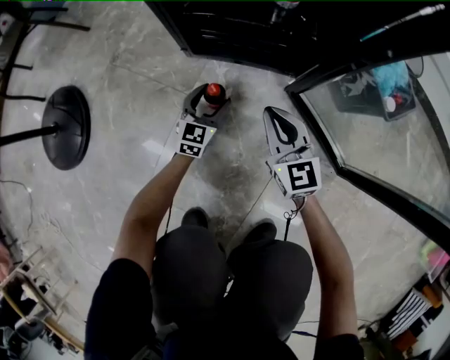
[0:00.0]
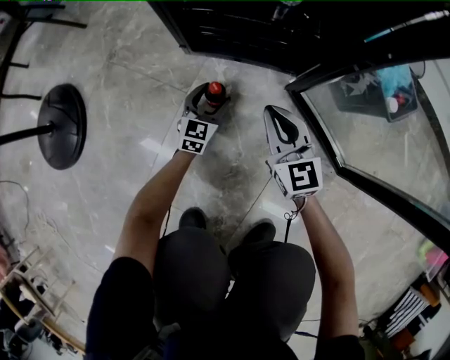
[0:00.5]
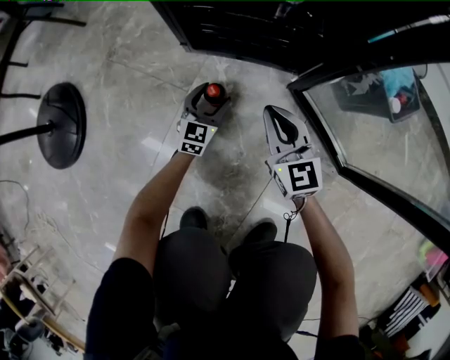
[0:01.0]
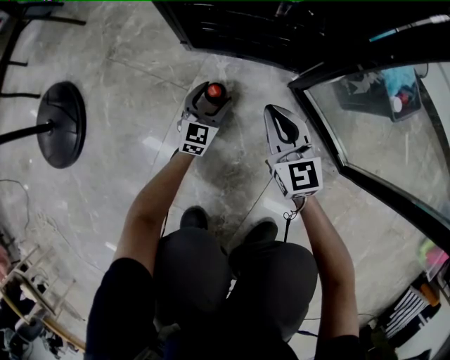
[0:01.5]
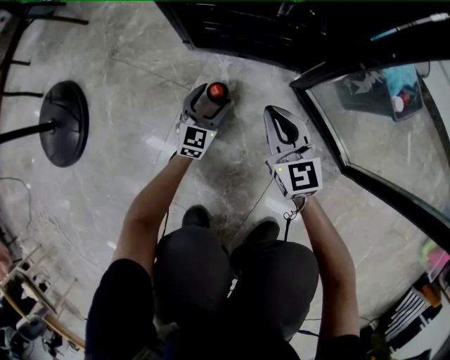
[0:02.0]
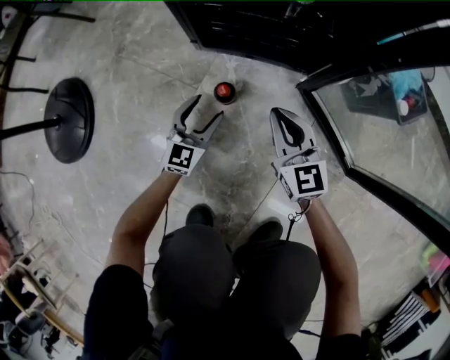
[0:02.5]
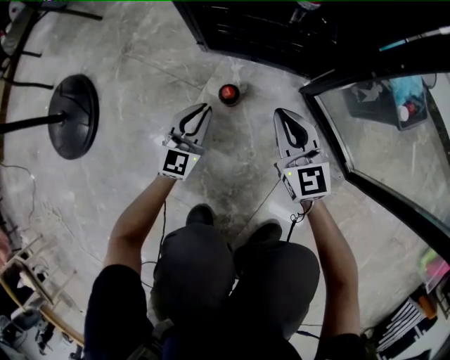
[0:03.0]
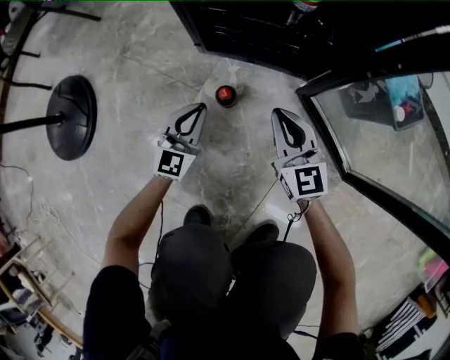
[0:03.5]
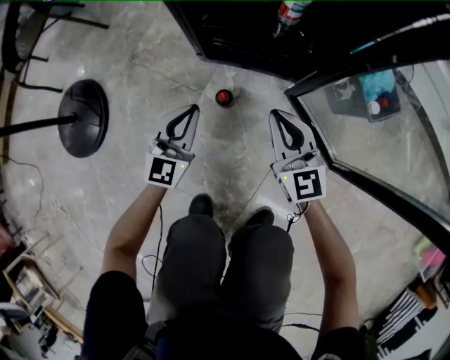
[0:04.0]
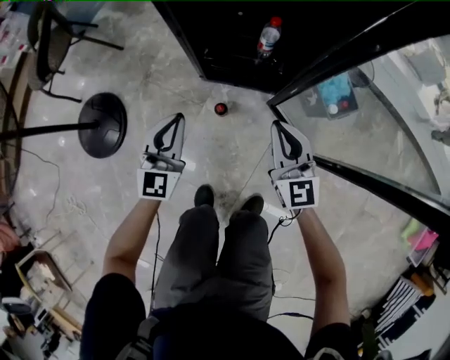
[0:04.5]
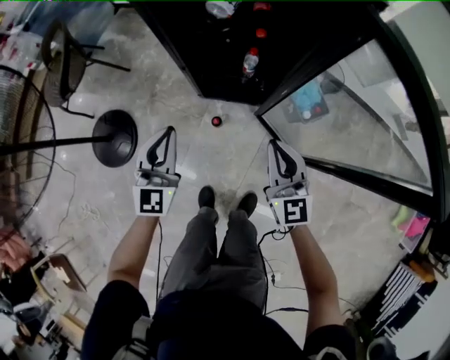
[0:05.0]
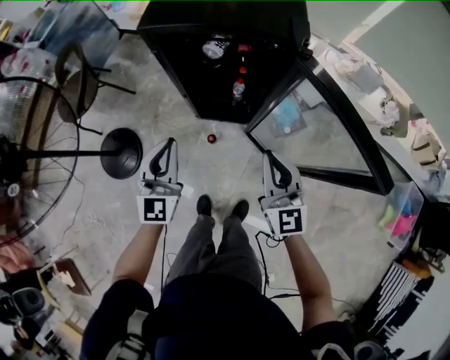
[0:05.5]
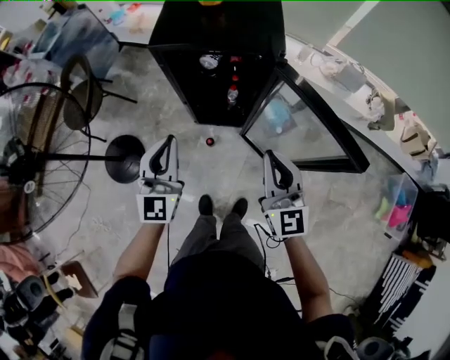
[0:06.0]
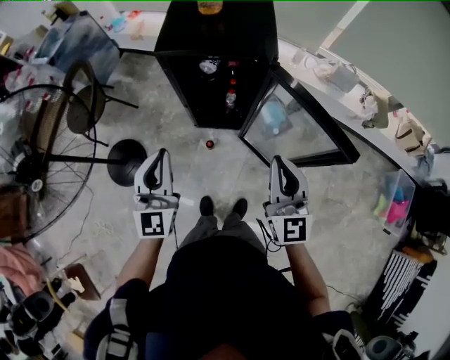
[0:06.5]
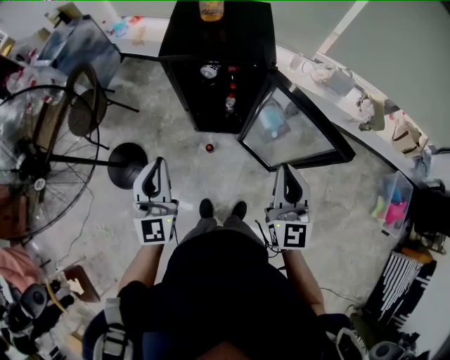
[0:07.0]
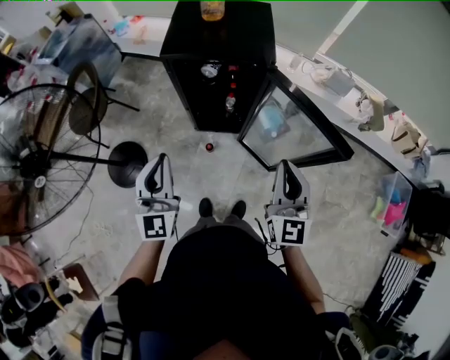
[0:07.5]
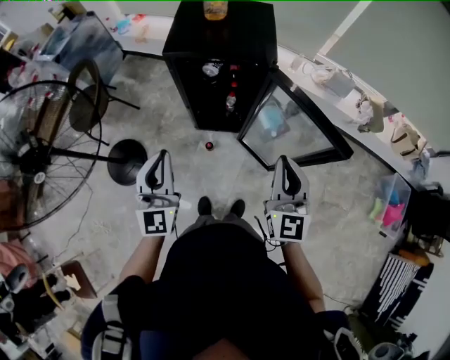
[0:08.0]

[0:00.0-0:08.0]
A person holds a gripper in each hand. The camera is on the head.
0:00.0 to 0:02.0: The grippers stay close to where they were, moving slightly.
0:02.0 to 0:04.0: The left gripper goes about 25 cm upward, and closes its fingers, while the right gripper shifts approximately 15 cm upward.
0:04.0 to 0:06.0: Both grippers move upward, some 80 cm.
0:06.0 to 0:08.0: The right gripper heads upward and backward, covering approximately 10 cm. Meanwhile the left gripper travels backward and upward by about 10 cm.

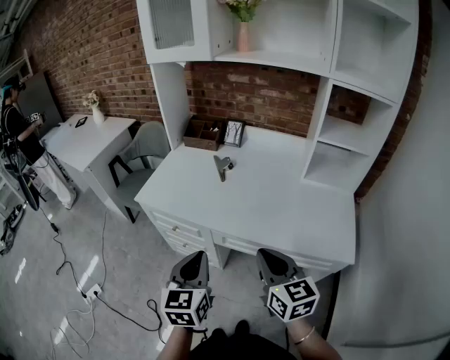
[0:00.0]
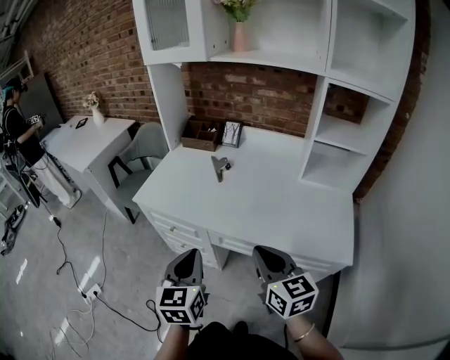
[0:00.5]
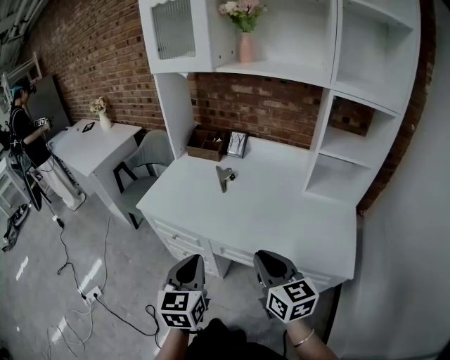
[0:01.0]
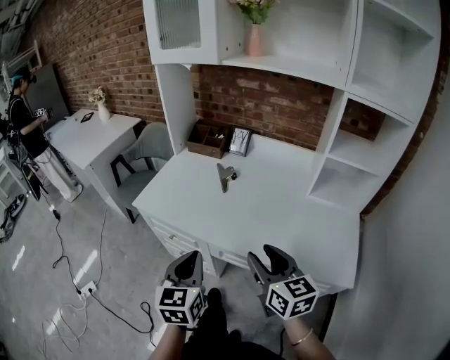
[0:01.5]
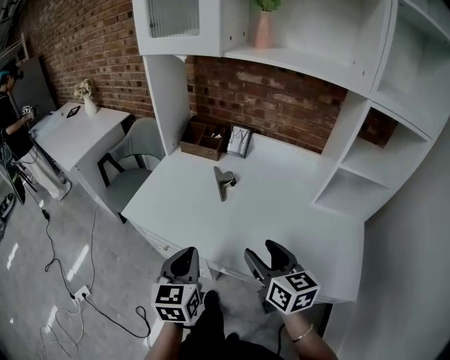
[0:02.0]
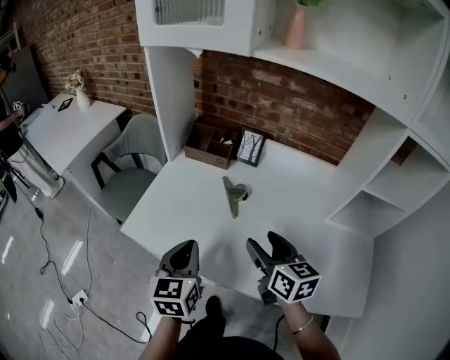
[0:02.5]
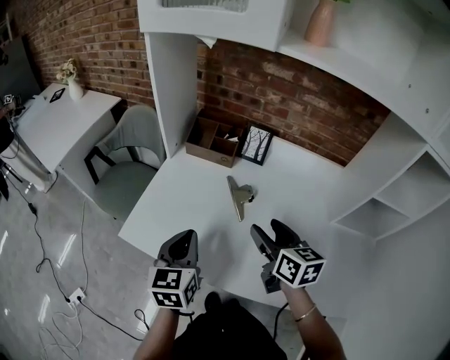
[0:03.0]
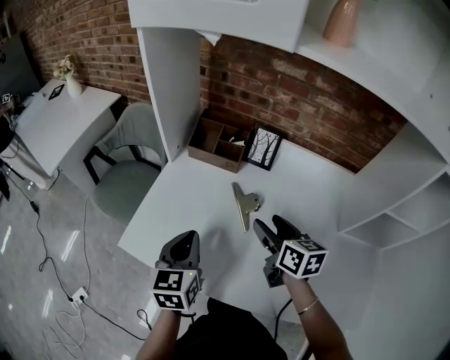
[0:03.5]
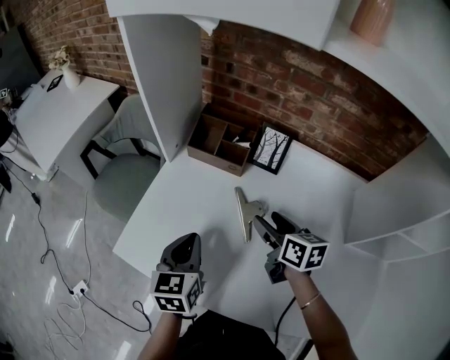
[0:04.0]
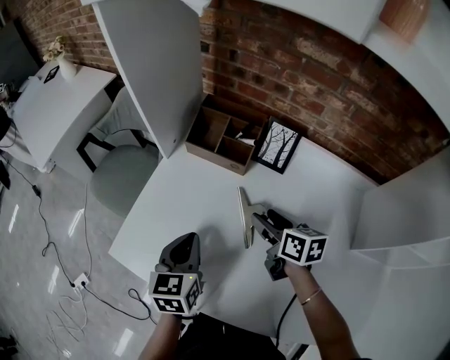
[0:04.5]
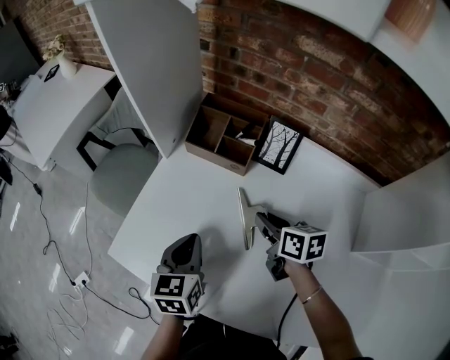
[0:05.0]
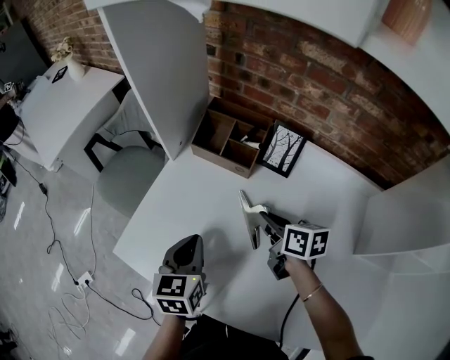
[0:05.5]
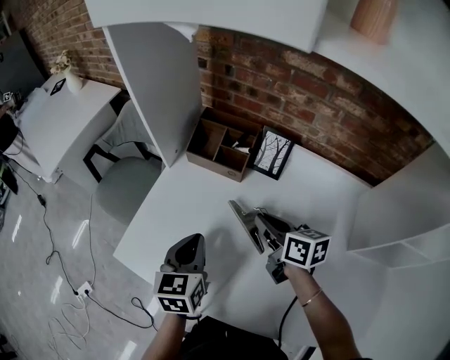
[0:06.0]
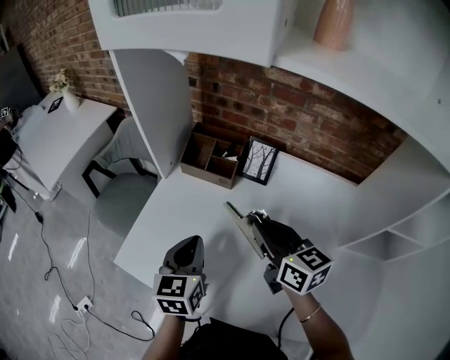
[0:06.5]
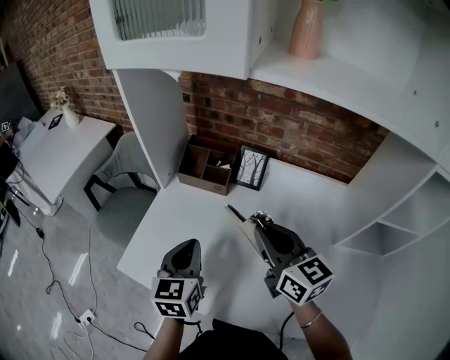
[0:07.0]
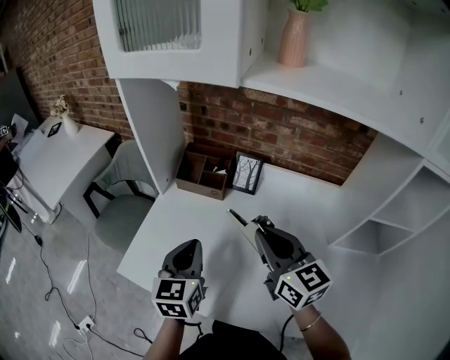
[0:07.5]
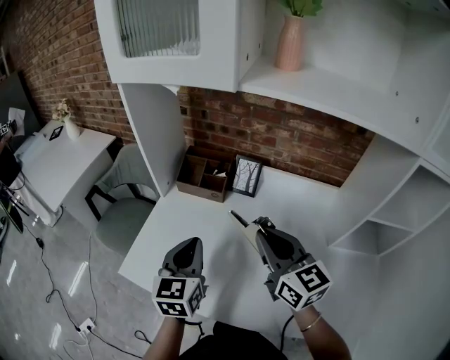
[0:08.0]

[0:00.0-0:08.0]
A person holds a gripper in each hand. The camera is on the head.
0:00.0 to 0:02.0: The grippers both shift forward by some 15 cm. The right gripper opens.
0:02.0 to 0:04.0: Both grippers travel together forward, approximately 30 cm. The right gripper rotates roughly 20 degrees.
0:04.0 to 0:06.0: The right gripper closes up.
0:06.0 to 0:08.0: The left gripper heads upward, covering some 10 cm; the right gripper travels upward and backward by some 20 cm, and rotates some 40 degrees.

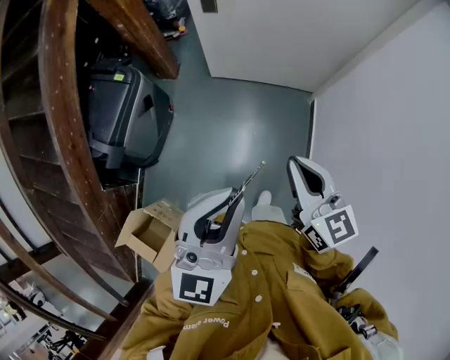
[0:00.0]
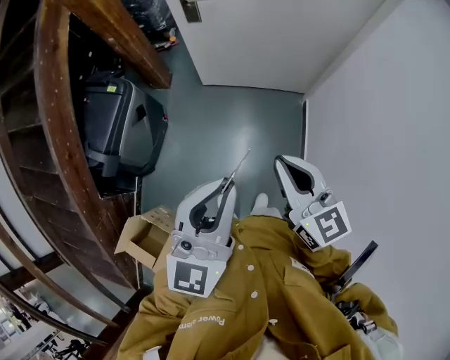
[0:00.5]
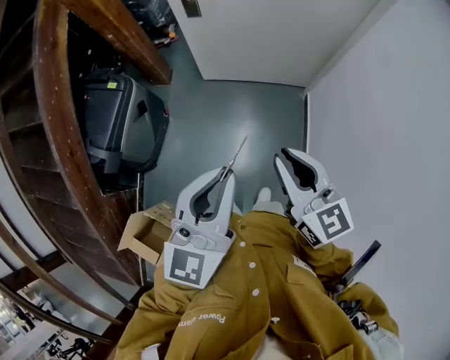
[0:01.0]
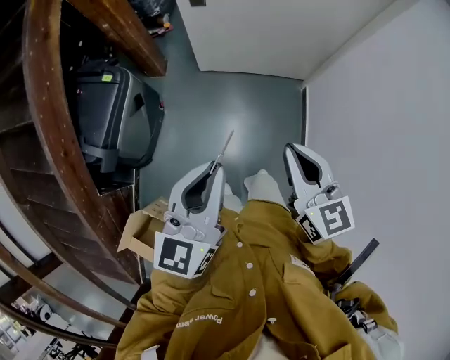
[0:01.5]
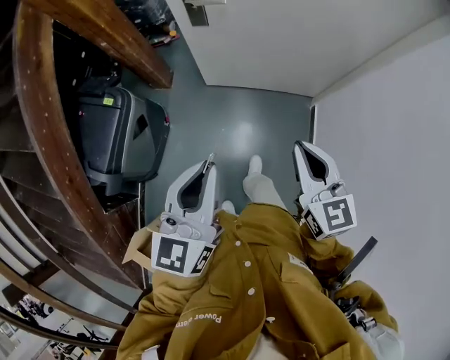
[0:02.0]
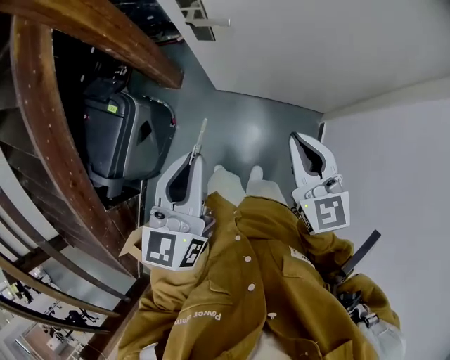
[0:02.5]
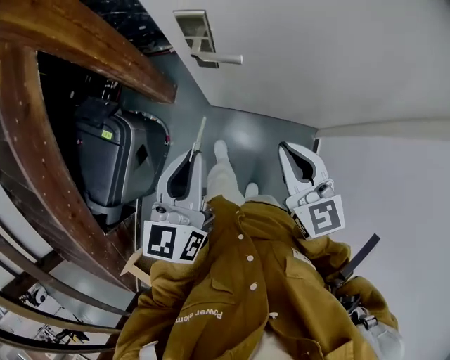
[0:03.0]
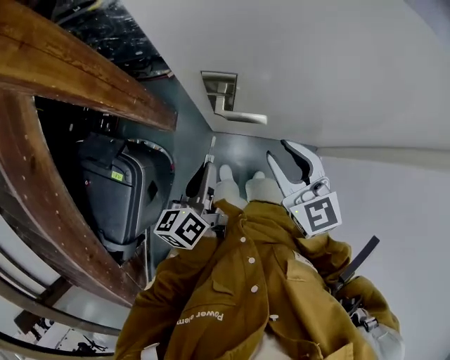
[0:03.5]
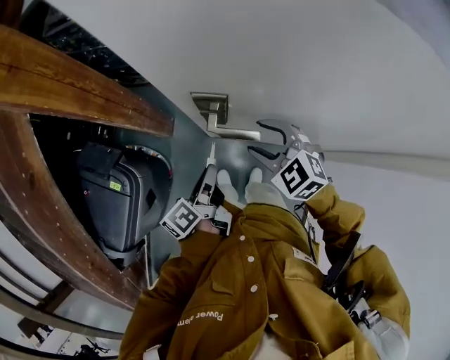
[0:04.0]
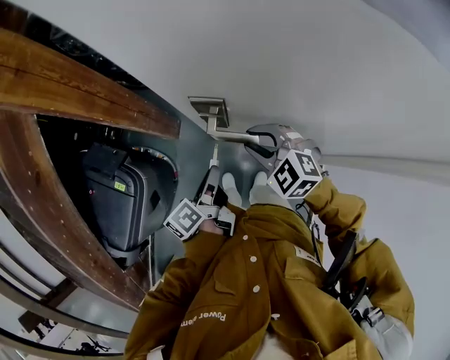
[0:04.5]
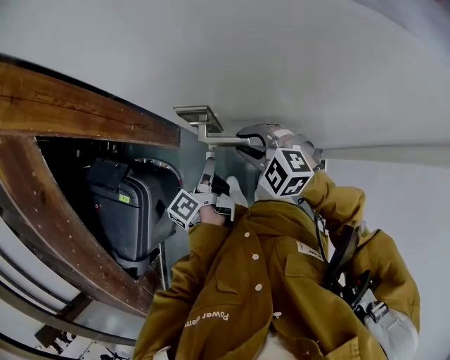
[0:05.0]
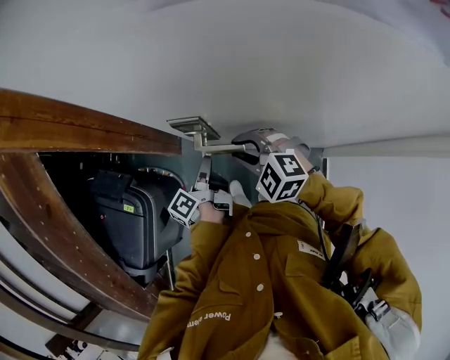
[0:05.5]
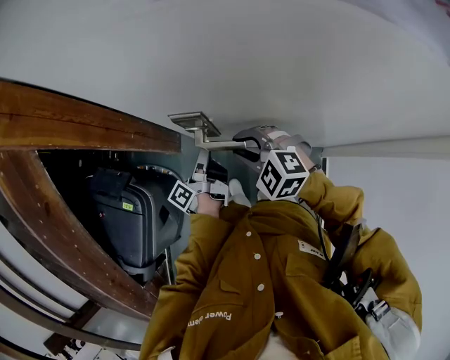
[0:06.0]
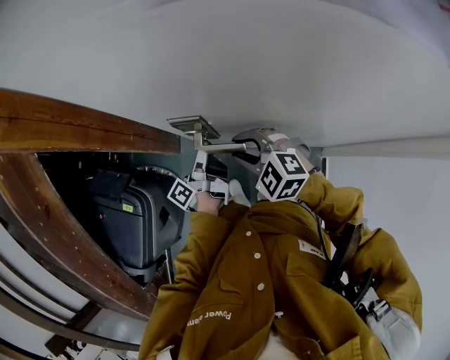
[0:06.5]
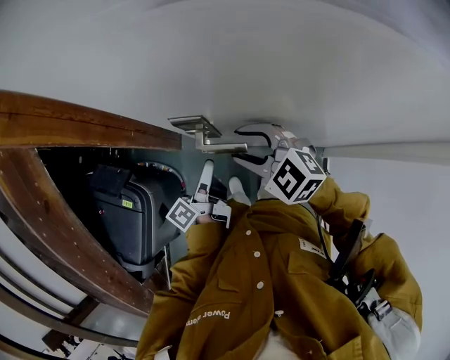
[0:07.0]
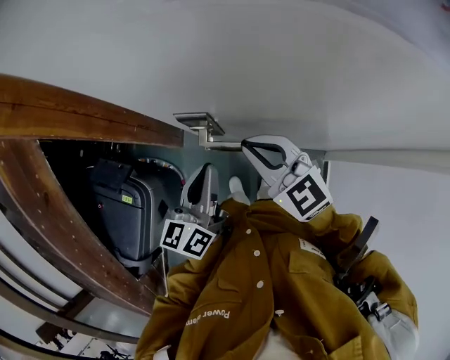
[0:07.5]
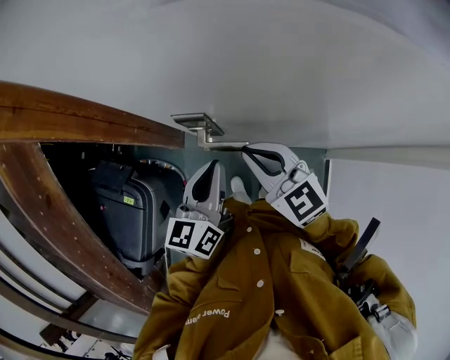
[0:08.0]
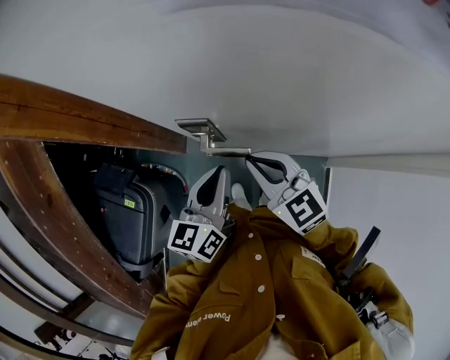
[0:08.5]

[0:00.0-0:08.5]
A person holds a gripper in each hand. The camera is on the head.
0:00.0 to 0:02.0: The two grippers go approximately 20 cm forward. The left gripper swivels some 30 degrees.
0:02.0 to 0:04.0: Both grippers are carried forward, approximately 50 cm. The right gripper turns by some 50 degrees, and opens. Meanwhile the left gripper is displaced downward by approximately 15 cm, and rotates around the line of its fingers by some 60 degrees, counterclockwise from behind.
0:04.0 to 0:06.5: The left gripper travels forward and to the right by some 10 cm, swivels some 30 degrees, and opens its fingers. Meanwhile the right gripper closes.
0:06.5 to 0:08.5: The right gripper goes roughly 10 cm upward, swivels approximately 40 degrees, and closes its fingers. The left gripper goes about 15 cm upward and backward, rotates around the line of its fingers by about 60 degrees, clockwise from behind, and closes.

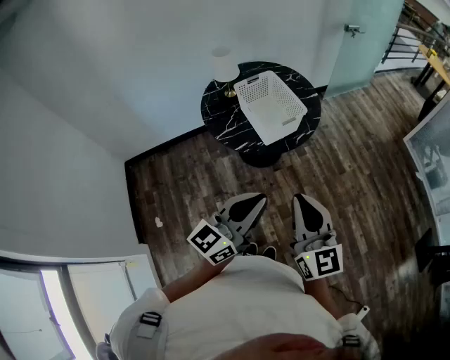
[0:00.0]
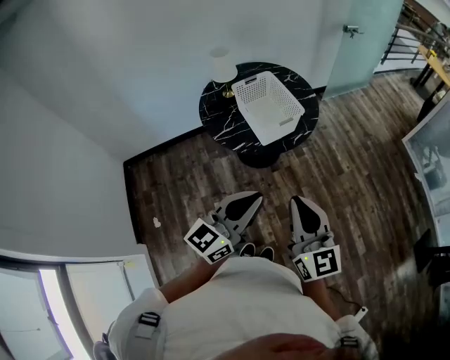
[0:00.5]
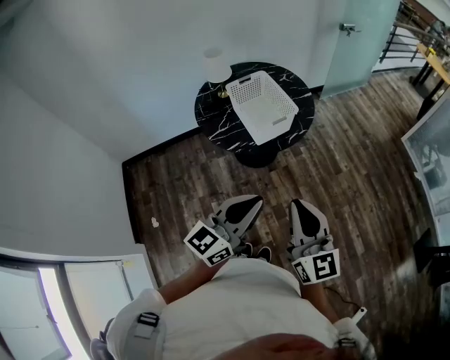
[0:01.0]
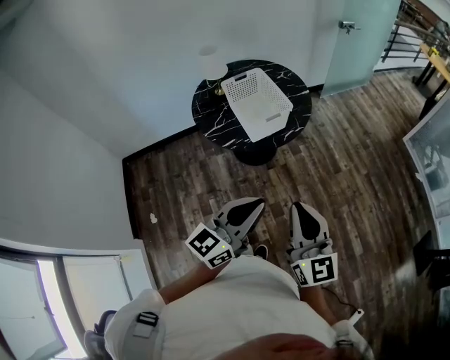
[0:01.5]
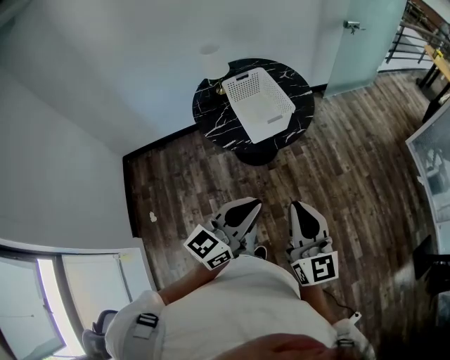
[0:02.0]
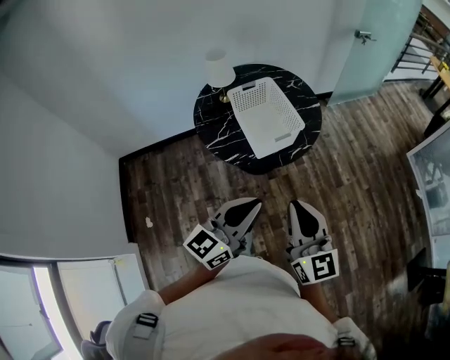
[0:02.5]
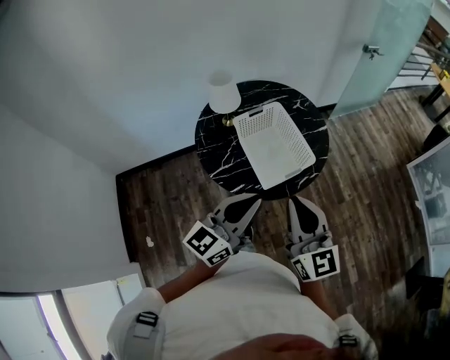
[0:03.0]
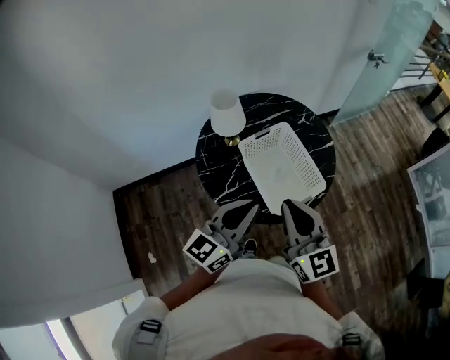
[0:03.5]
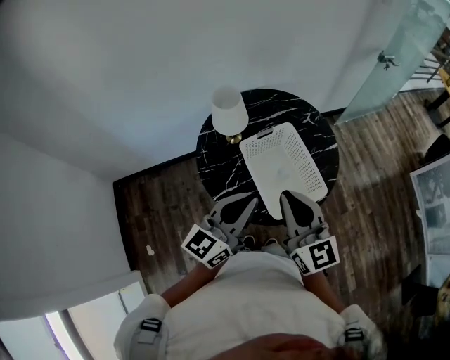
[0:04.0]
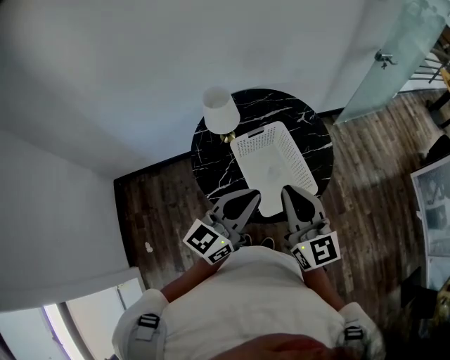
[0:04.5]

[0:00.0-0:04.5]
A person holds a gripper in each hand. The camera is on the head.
0:00.0 to 0:02.0: The two grippers go roughly 10 cm to the right.
0:02.0 to 0:04.5: The pair of grippers is taken forward, roughly 40 cm.
